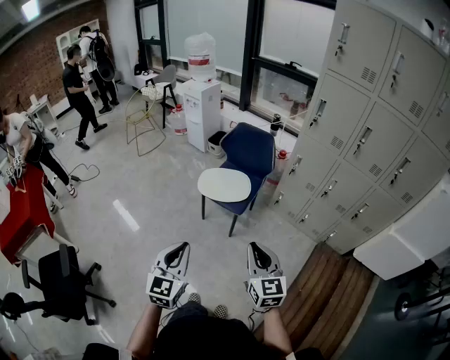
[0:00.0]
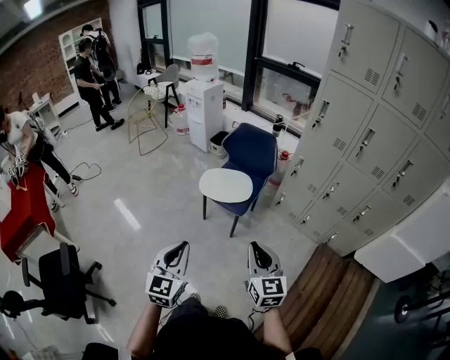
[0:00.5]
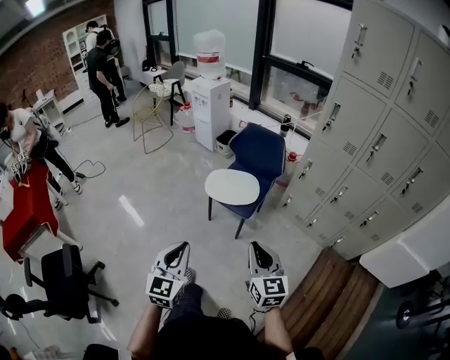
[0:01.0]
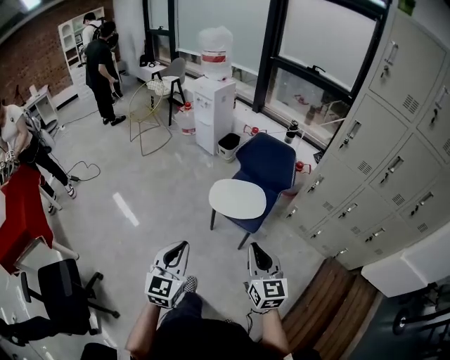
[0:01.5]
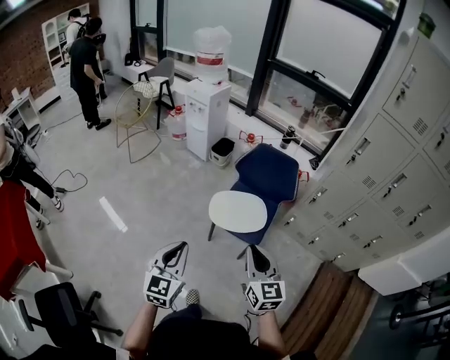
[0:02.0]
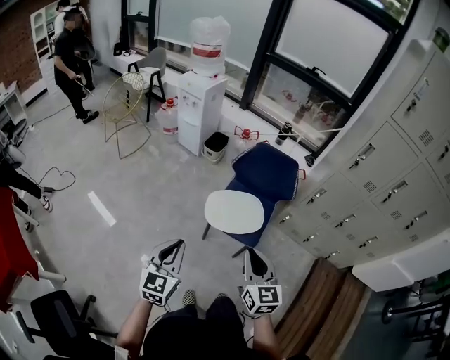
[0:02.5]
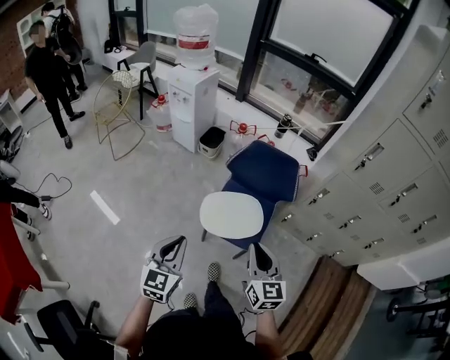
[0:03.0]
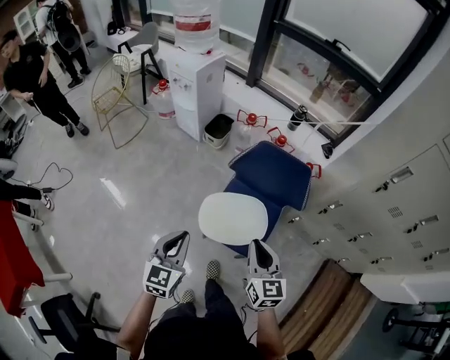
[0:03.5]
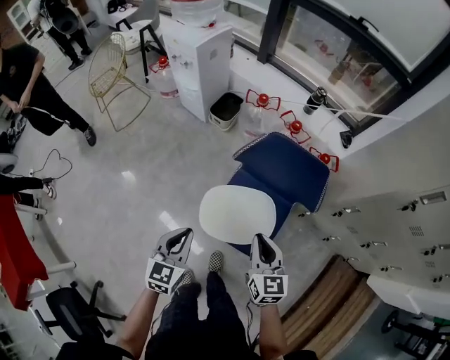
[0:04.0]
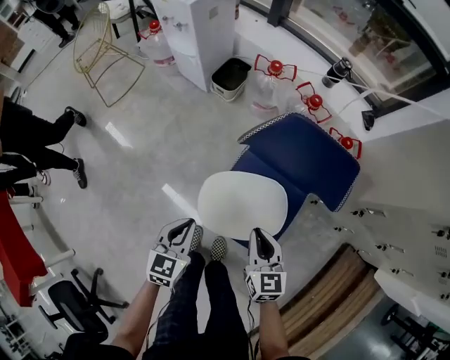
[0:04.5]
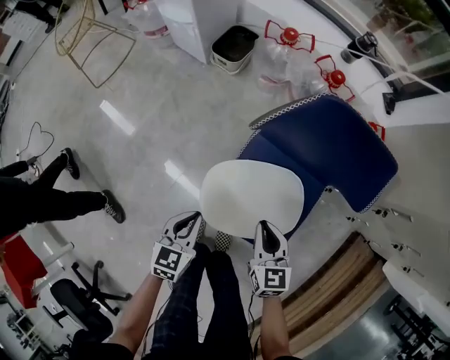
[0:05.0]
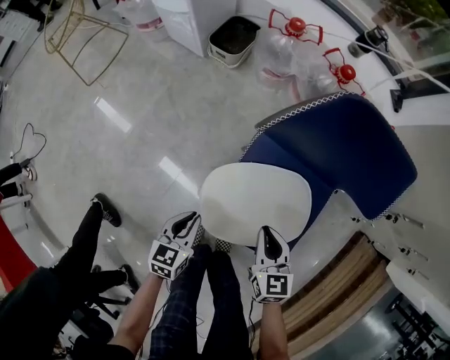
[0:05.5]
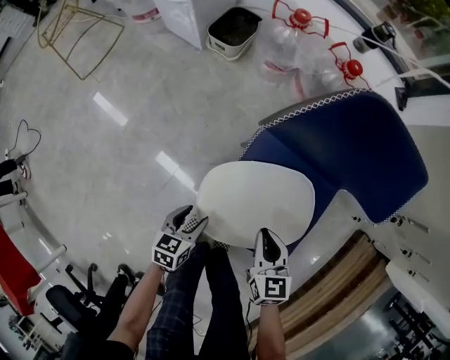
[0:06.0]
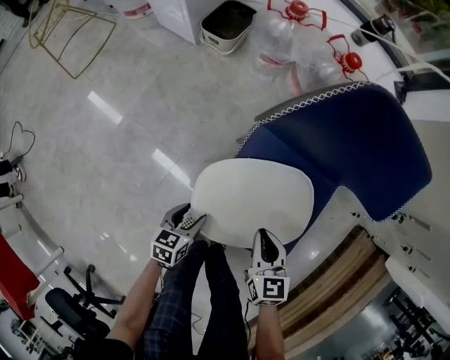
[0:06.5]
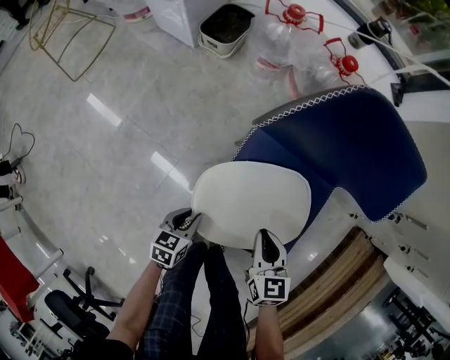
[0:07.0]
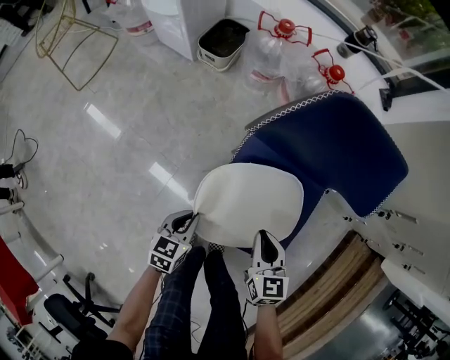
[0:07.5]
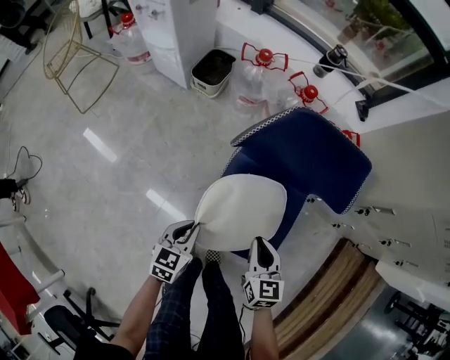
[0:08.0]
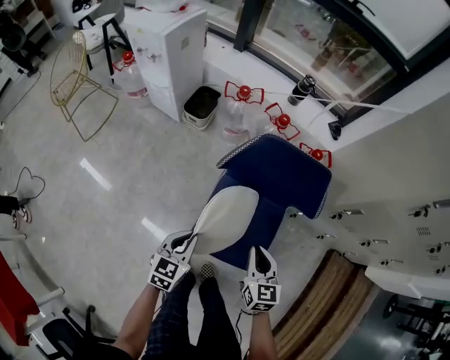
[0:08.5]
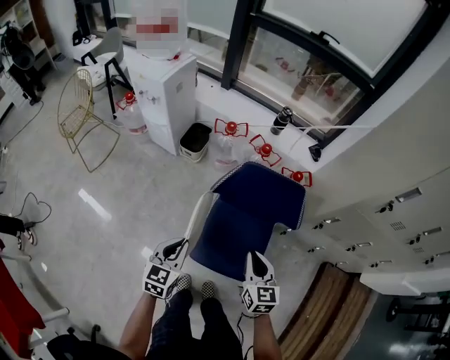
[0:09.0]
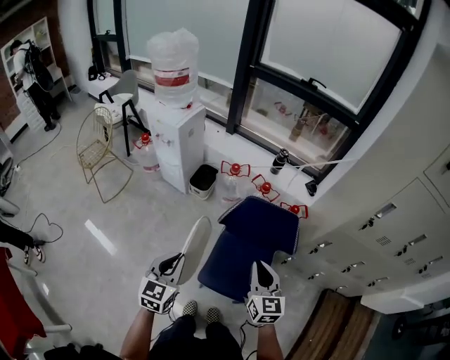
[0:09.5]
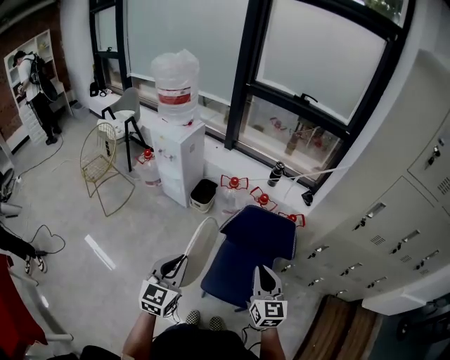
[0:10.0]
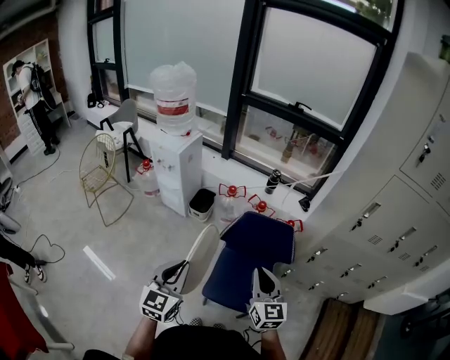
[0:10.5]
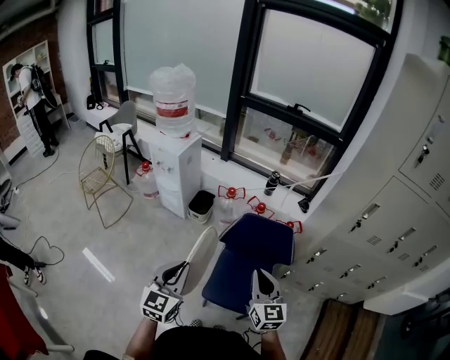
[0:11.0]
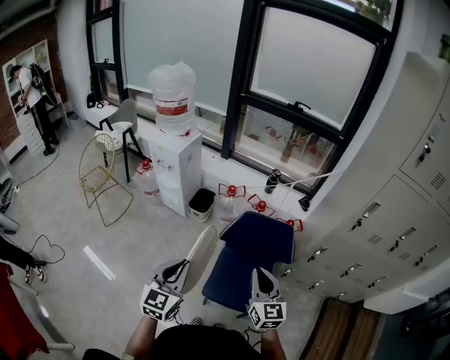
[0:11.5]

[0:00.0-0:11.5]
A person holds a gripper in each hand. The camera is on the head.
0:00.0 to 0:02.0: The two grippers go approximately 40 cm forward and to the left.
0:02.0 to 0:04.0: The pair of grippers is taken forward, some 40 cm. Both grippers move downward, about 20 cm.
0:04.0 to 0:06.0: The grippers both shift downward by some 40 cm. The left gripper turns by about 30 degrees, and opens up.
0:06.0 to 0:07.5: The left gripper moves about 5 cm, and closes.
0:07.5 to 0:09.5: Both grippers travel together upward, about 50 cm. The left gripper turns by some 30 degrees. Meanwhile the right gripper swivels roughly 20 degrees.
0:09.5 to 0:11.5: Both grippers travel together upward, some 10 cm.

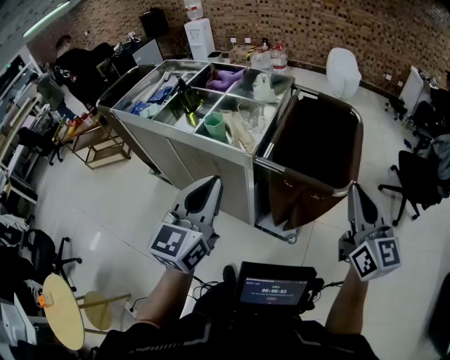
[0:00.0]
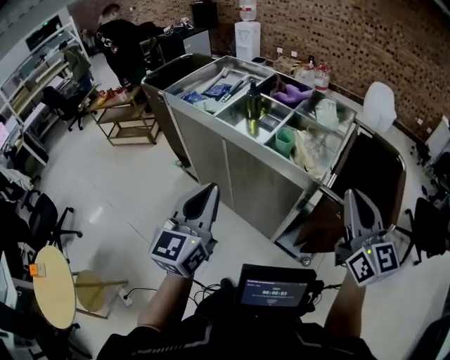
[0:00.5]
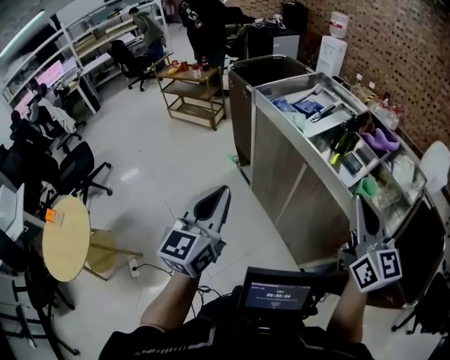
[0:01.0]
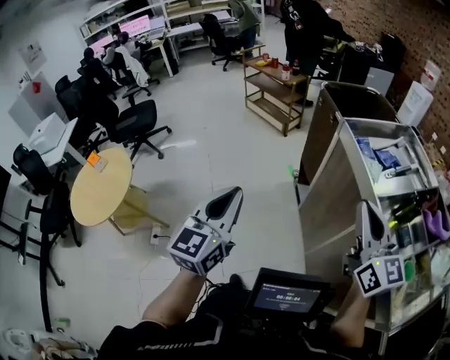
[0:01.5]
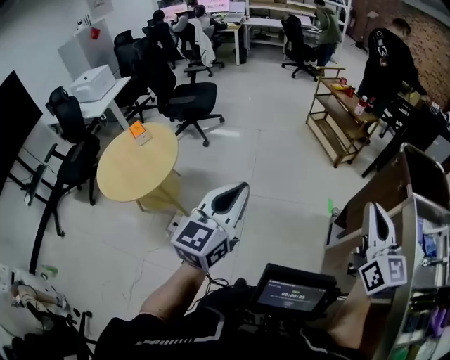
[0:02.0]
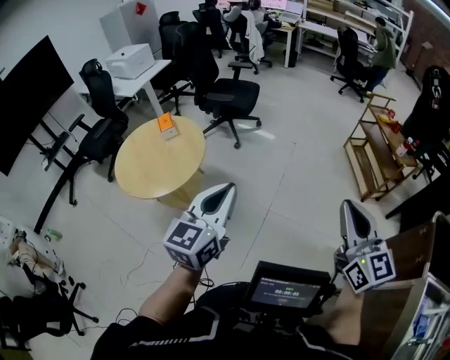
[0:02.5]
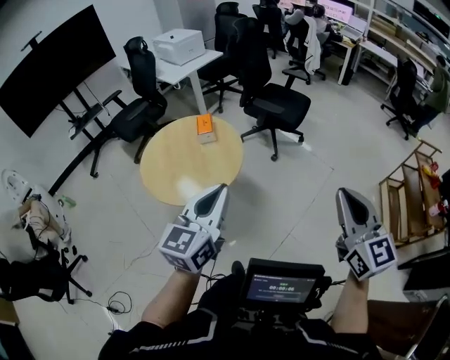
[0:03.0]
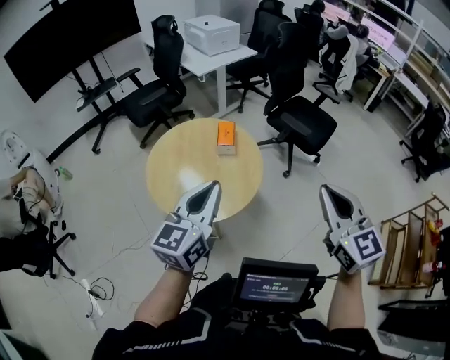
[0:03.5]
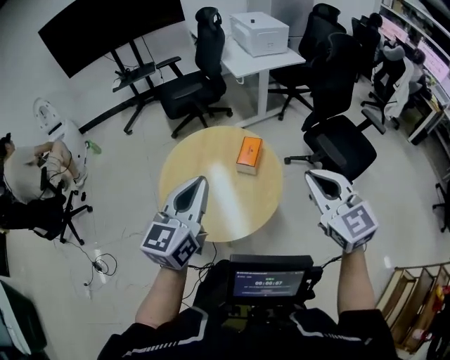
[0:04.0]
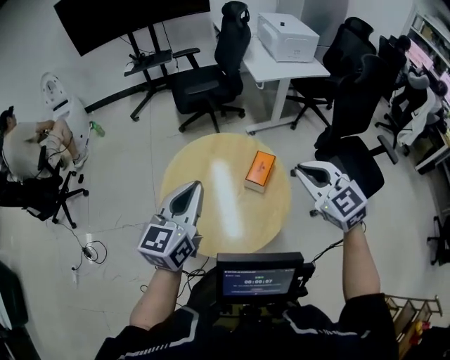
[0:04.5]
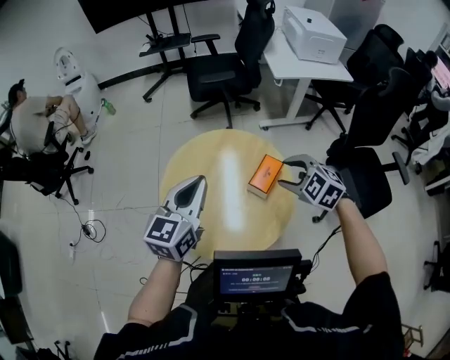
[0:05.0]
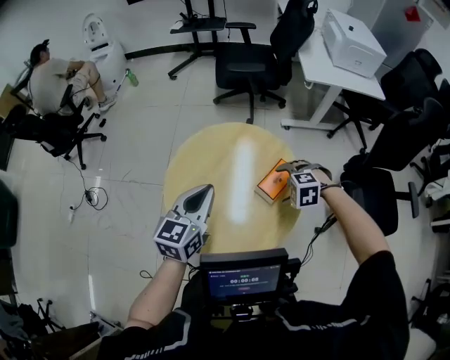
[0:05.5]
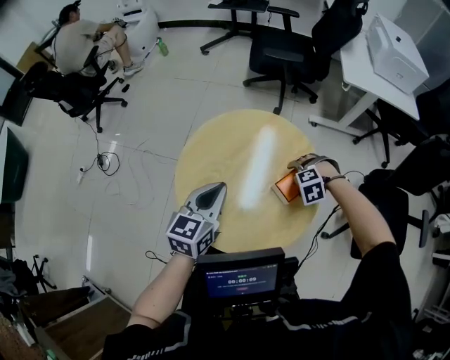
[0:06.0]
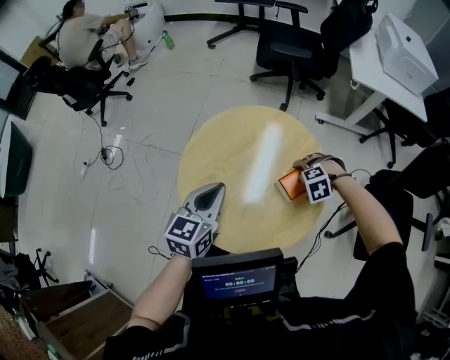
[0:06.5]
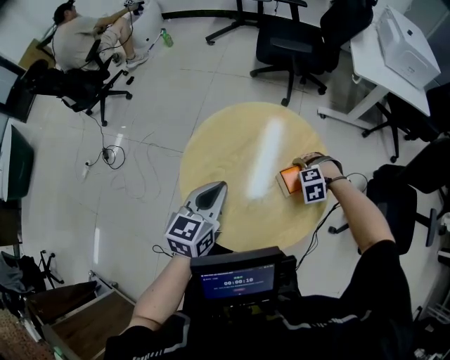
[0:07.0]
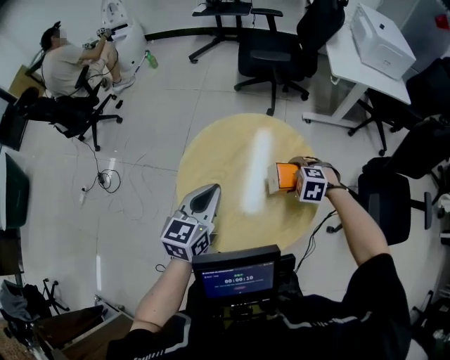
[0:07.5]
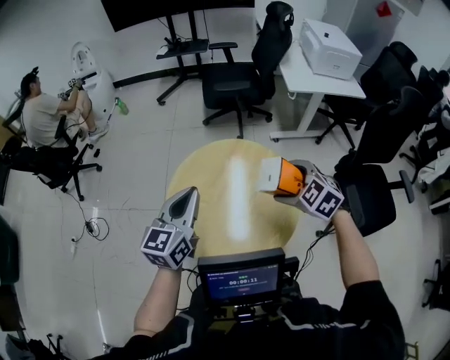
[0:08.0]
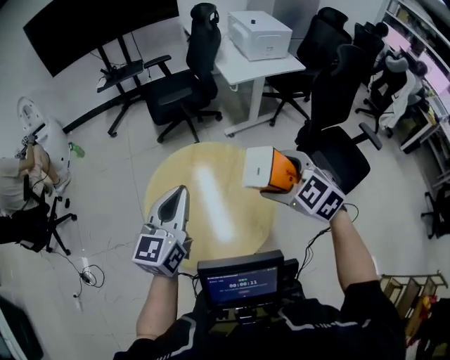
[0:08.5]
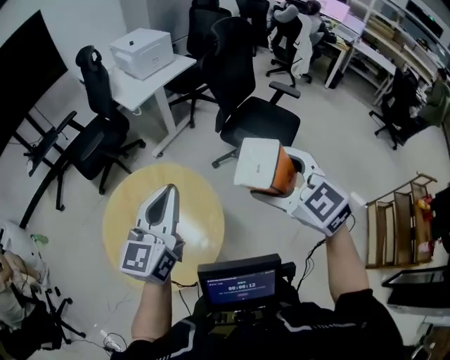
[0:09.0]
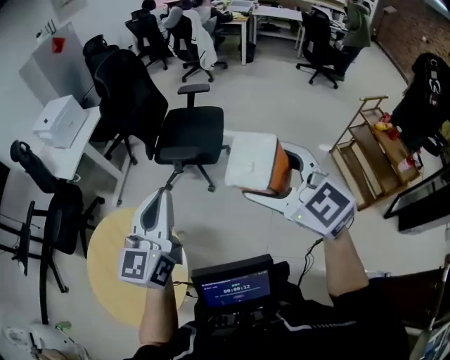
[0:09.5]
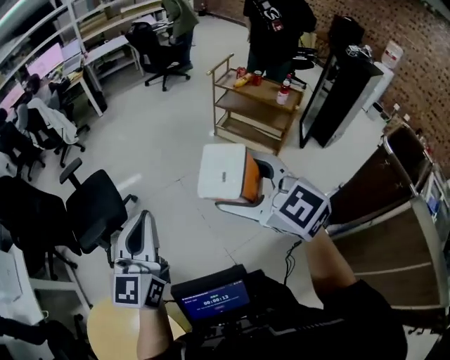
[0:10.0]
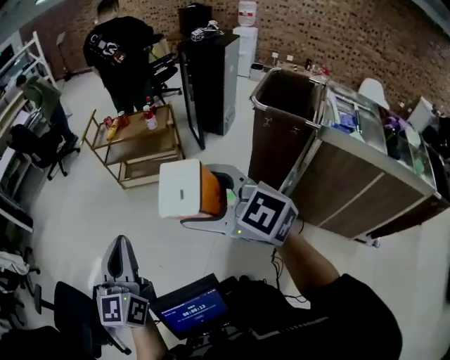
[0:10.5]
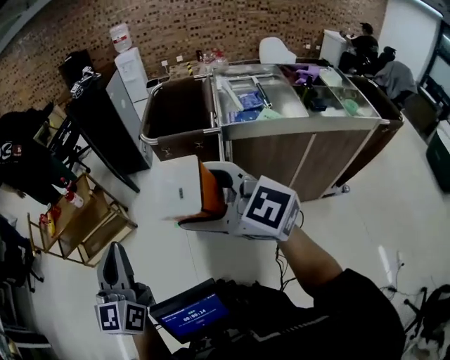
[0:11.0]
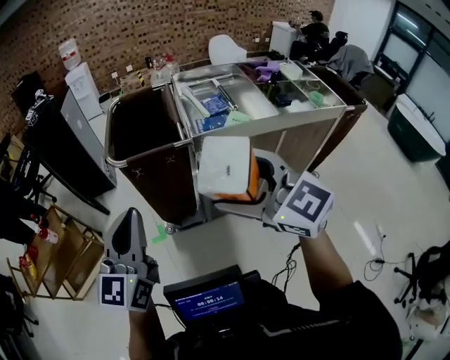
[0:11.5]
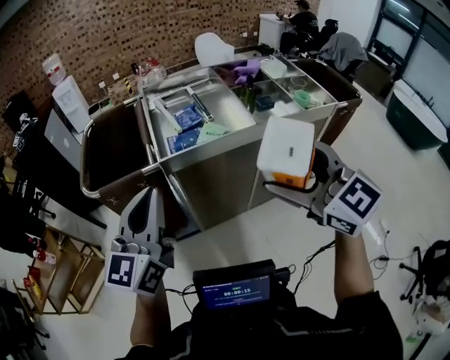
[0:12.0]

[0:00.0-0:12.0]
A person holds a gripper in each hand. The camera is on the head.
0:00.0 to 0:02.0: The two grippers travel together, approximately 1 m. The left gripper swivels roughly 70 degrees. The right gripper swivels about 70 degrees.
0:02.0 to 0:04.0: The pair of grippers is taken approximately 1 m. The right gripper turns by some 90 degrees, while the left gripper changes its angle by approximately 70 degrees.
0:04.0 to 0:06.0: The right gripper ends up roughly 60 cm from where it was, points its fingers some 70 degrees further downward, and opens its fingers. Meanwhile the left gripper moves some 40 cm, and swivels approximately 40 degrees.
0:06.0 to 0:08.0: The right gripper is displaced upward by about 30 cm, and tilts its fingers some 40 degrees upward, while the left gripper shifts some 15 cm upward.
0:08.0 to 0:10.0: The pair of grippers is taken about 90 cm. The right gripper tips its fingers upward by roughly 30 degrees; the left gripper swivels approximately 110 degrees.
0:10.0 to 0:12.0: The two grippers travel together, about 1 m. The left gripper rotates roughly 100 degrees, while the right gripper changes its angle by approximately 100 degrees.

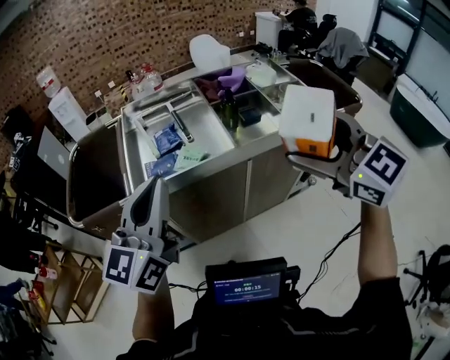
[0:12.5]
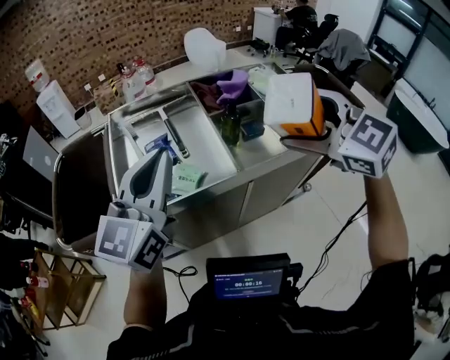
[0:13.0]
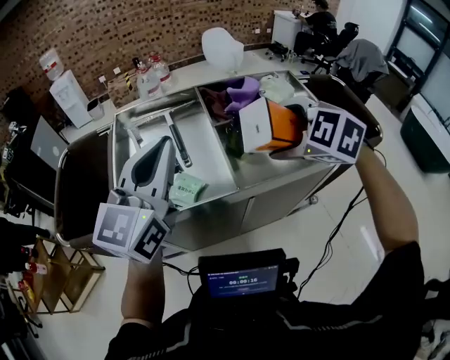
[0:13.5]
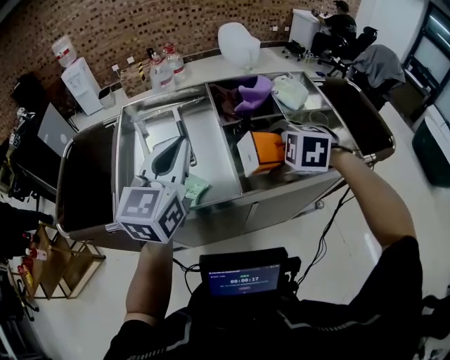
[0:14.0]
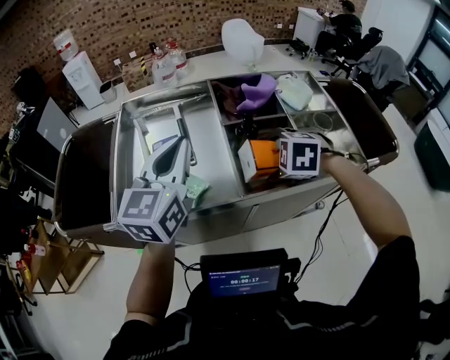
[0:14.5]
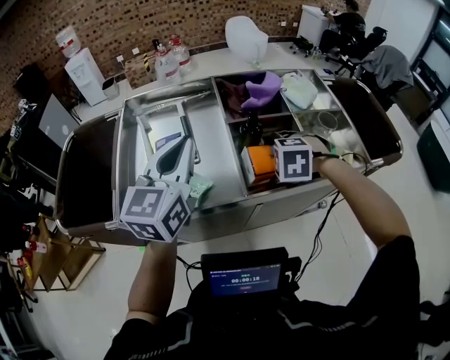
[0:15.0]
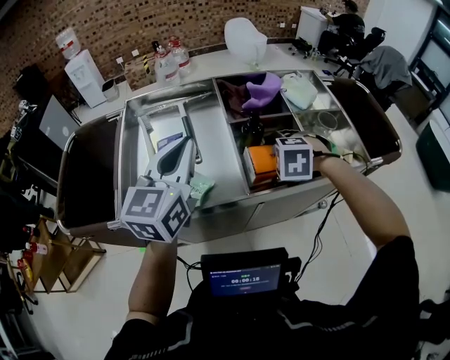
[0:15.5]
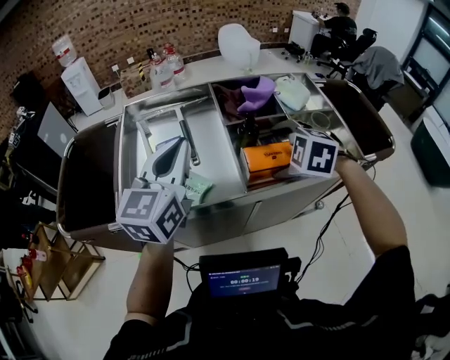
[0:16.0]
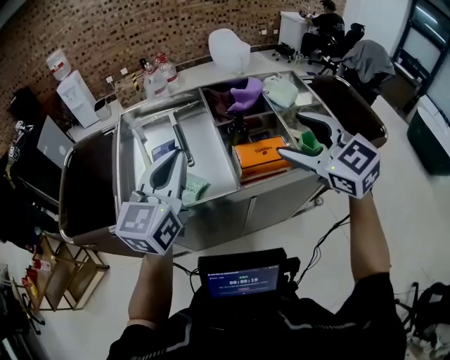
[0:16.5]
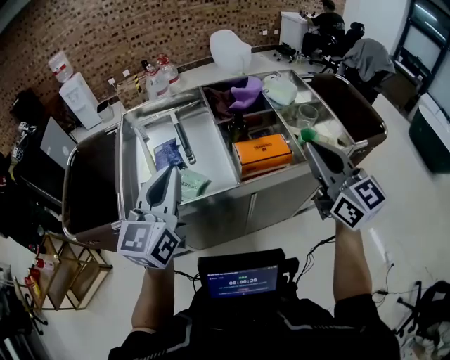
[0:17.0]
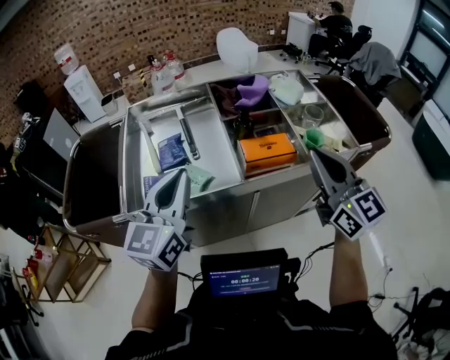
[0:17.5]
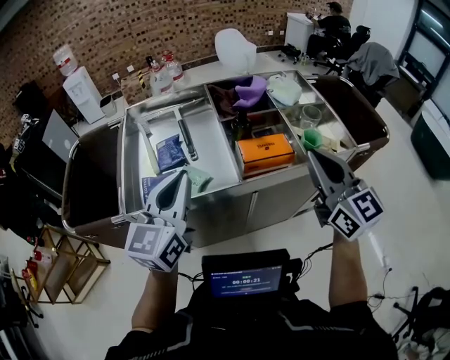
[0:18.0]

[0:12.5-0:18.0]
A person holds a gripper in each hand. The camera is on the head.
0:12.5 to 0:14.5: The right gripper heads forward and downward, covering approximately 40 cm, and tips its fingers downward by approximately 60 degrees, while the left gripper moves forward and to the right, about 35 cm.
0:14.5 to 0:16.0: The right gripper heads upward, covering roughly 5 cm.
0:16.0 to 0:18.0: The right gripper is displaced upward, backward and to the right by about 20 cm, angles its fingers upward, by some 60 degrees, and closes its fingers. Meanwhile the left gripper shifts about 10 cm backward.
